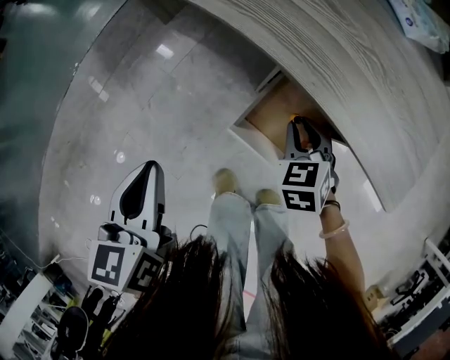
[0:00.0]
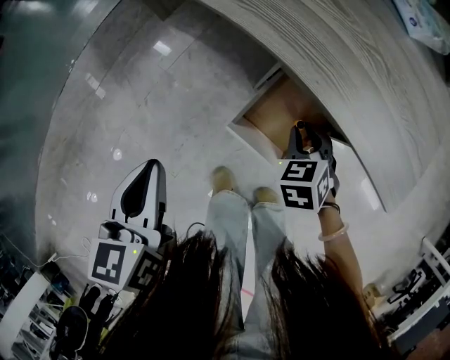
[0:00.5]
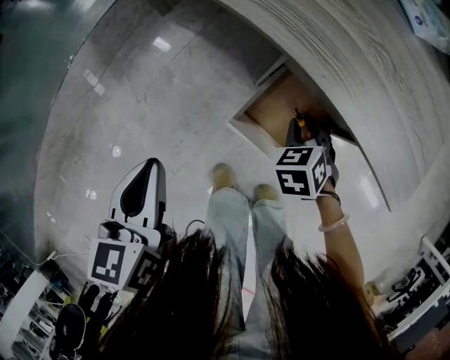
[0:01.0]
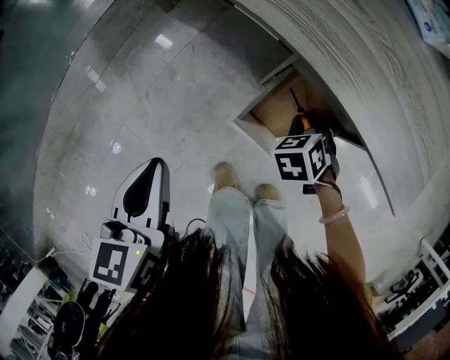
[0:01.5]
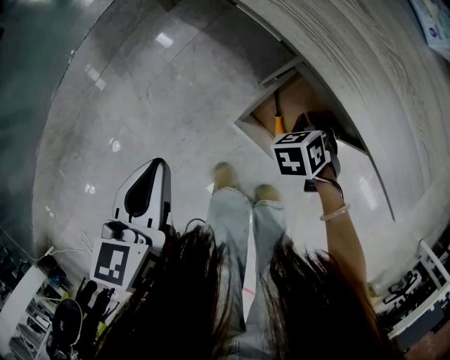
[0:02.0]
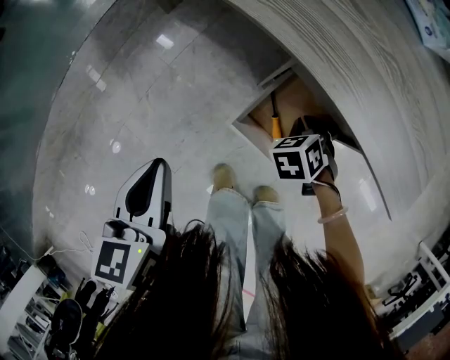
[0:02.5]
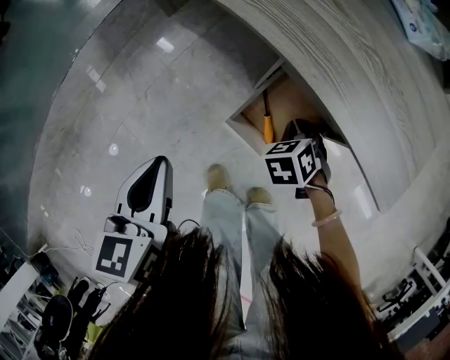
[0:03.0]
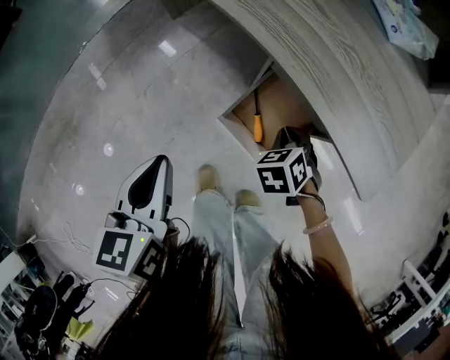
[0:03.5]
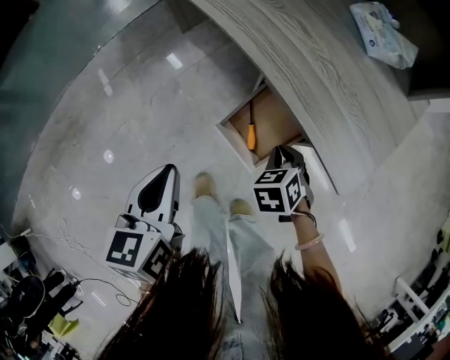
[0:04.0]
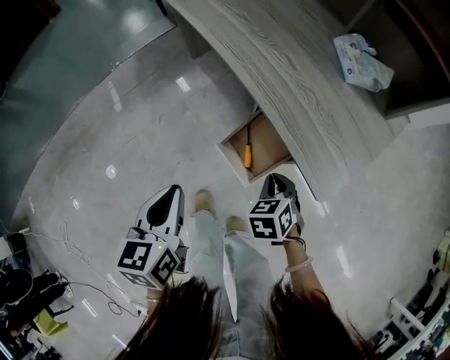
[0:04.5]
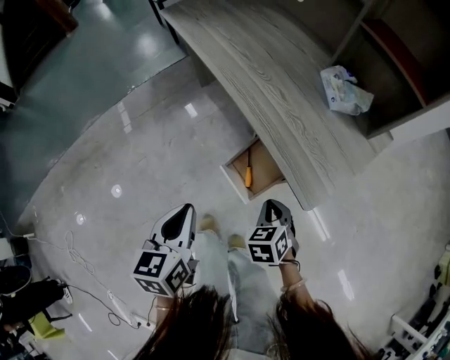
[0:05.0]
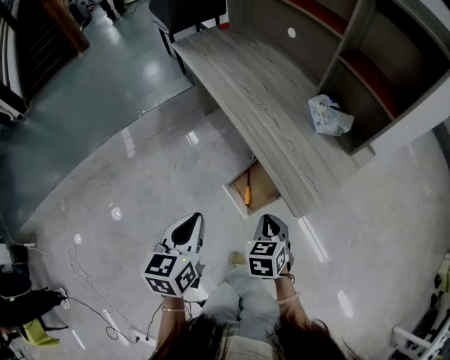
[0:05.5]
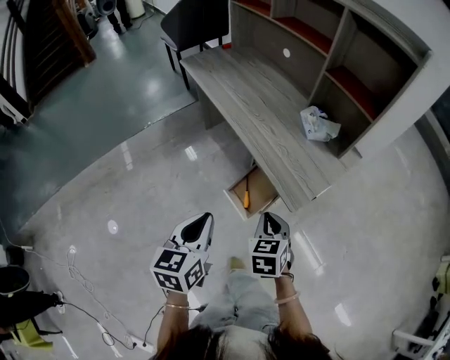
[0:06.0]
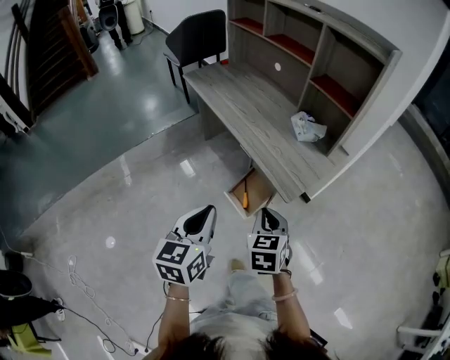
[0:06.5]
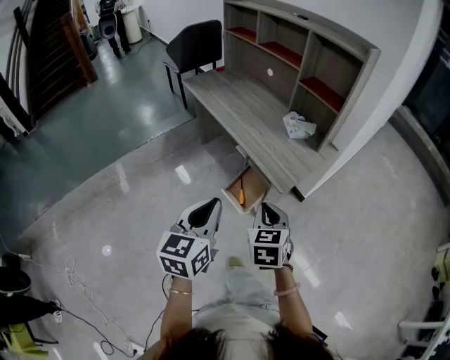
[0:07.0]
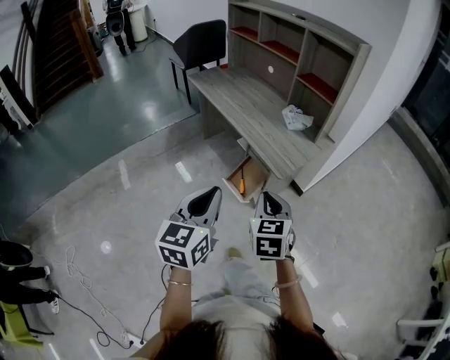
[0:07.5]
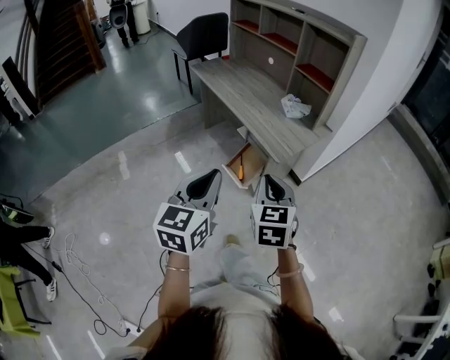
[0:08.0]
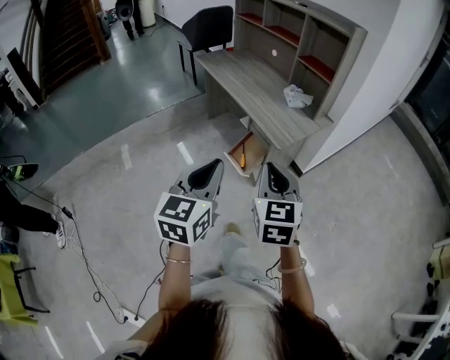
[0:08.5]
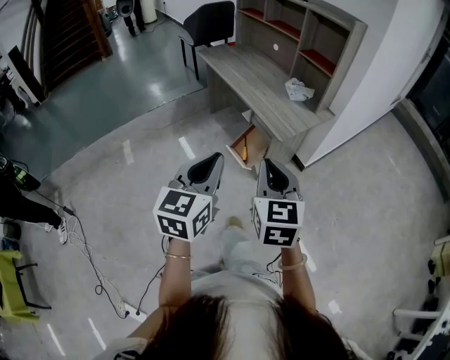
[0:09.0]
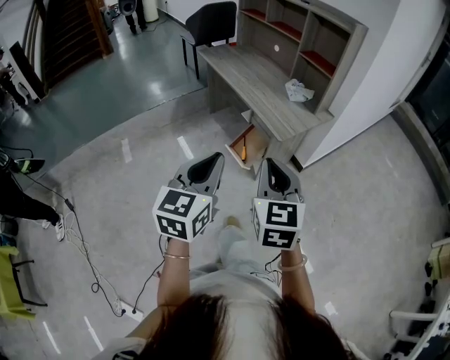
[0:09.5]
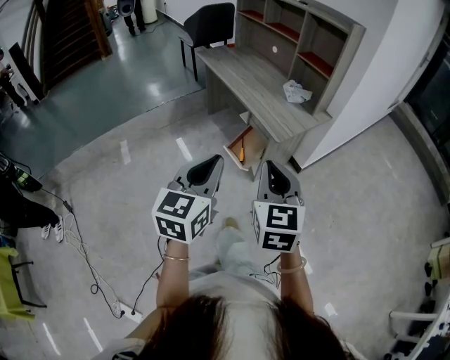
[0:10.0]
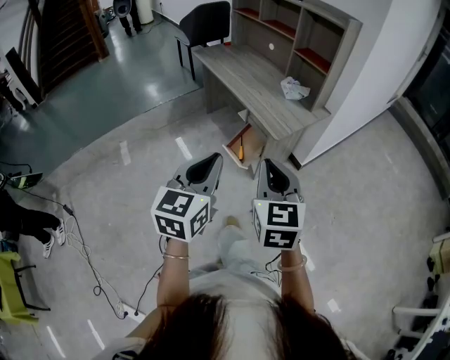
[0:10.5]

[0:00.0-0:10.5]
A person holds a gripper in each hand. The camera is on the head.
0:00.0 to 0:02.0: The right gripper is displaced downward by approximately 10 cm, and swivels roughly 20 degrees.
0:02.0 to 0:04.0: The left gripper travels to the right, upward and backward by about 10 cm. Meanwhile the right gripper heads upward and backward, covering some 10 cm.
0:04.0 to 0:06.5: Both grippers travel together upward and backward, about 35 cm. The right gripper changes its angle by about 30 degrees.
0:06.5 to 0:08.5: Both grippers travel together backward and upward, about 25 cm. The right gripper rotates roughly 20 degrees.
0:08.5 to 0:10.5: The grippers stay close to where they were, moving slightly.

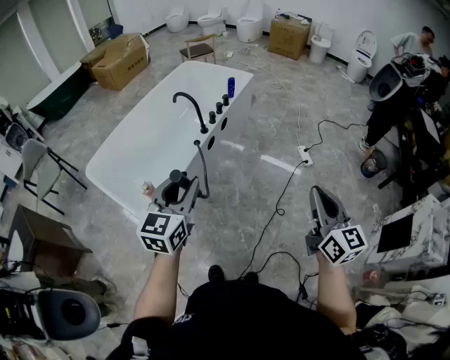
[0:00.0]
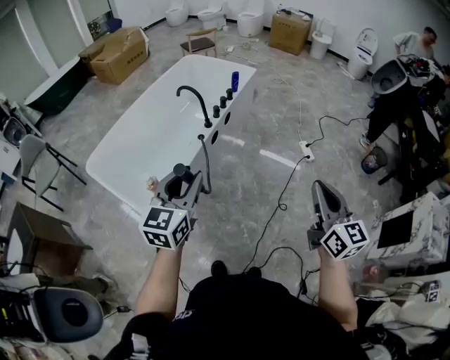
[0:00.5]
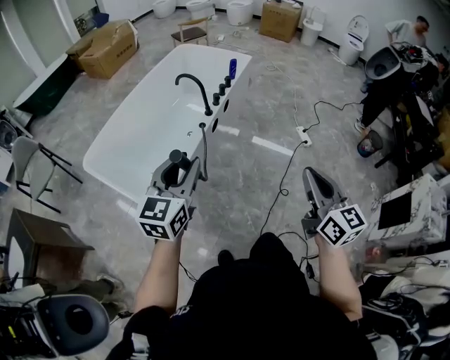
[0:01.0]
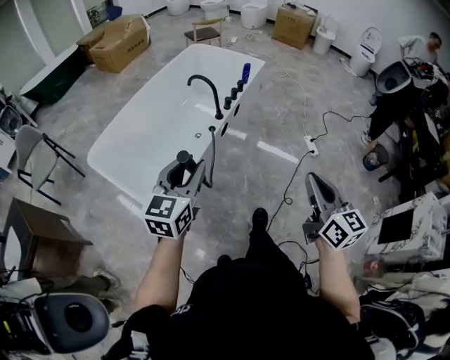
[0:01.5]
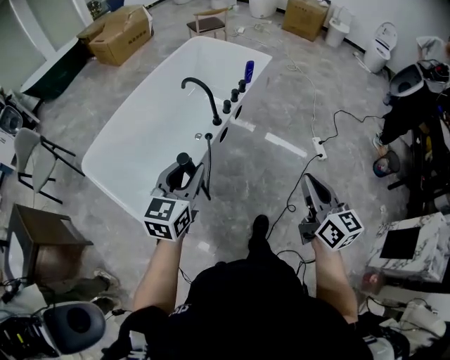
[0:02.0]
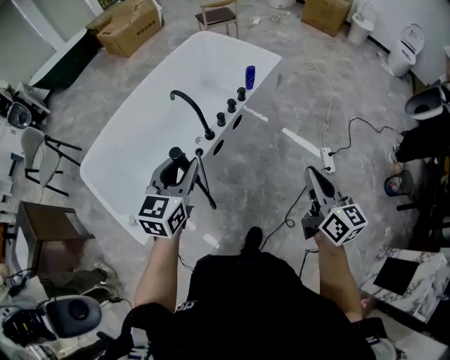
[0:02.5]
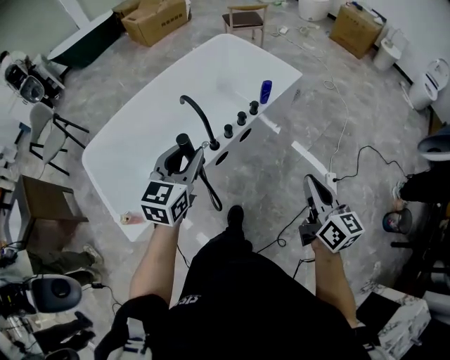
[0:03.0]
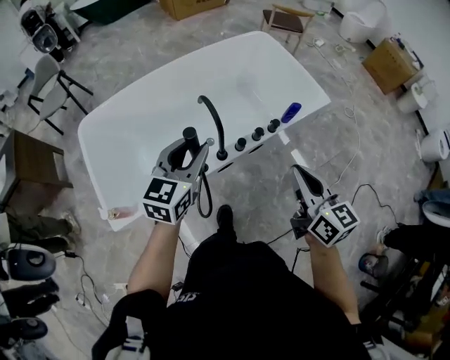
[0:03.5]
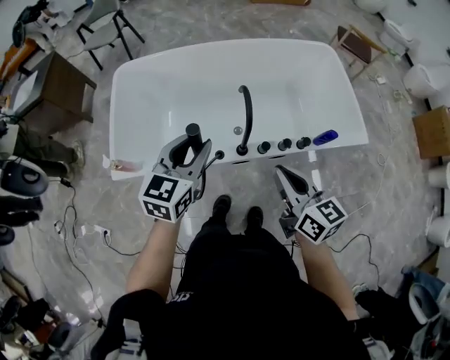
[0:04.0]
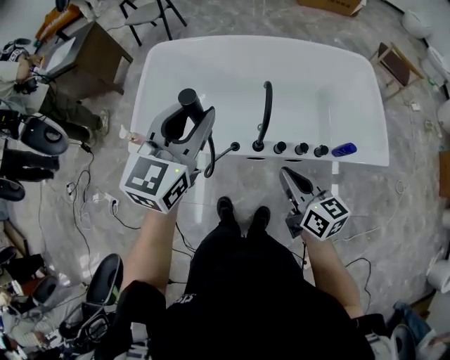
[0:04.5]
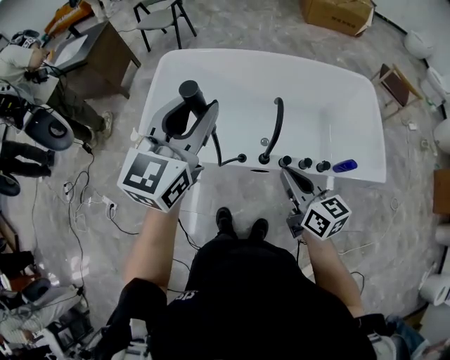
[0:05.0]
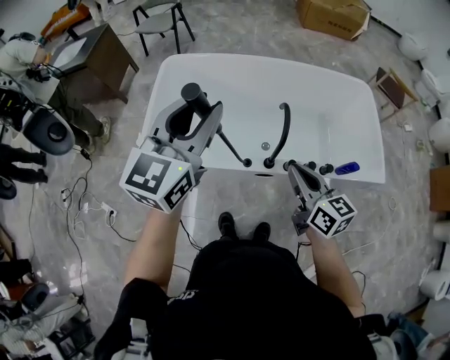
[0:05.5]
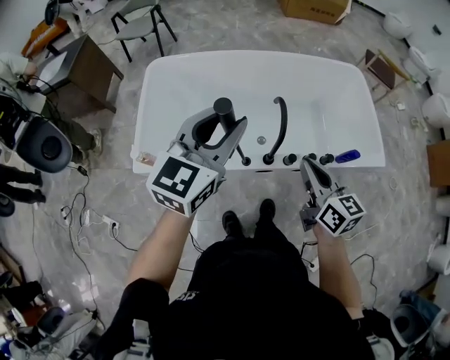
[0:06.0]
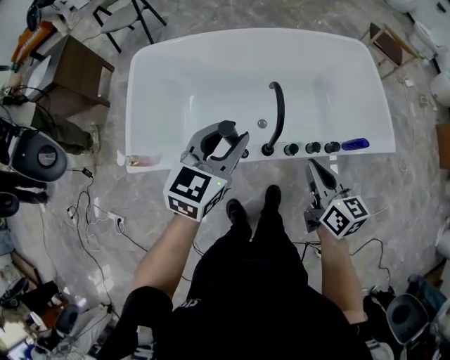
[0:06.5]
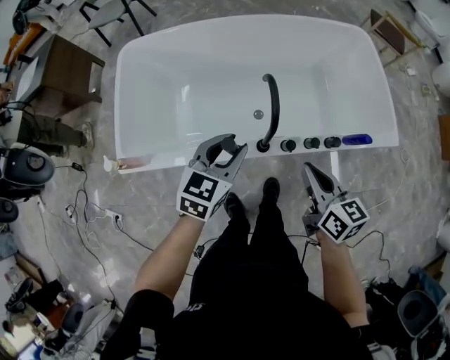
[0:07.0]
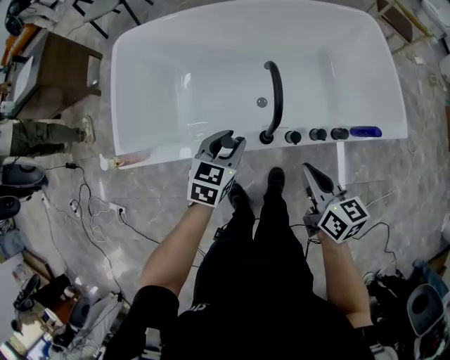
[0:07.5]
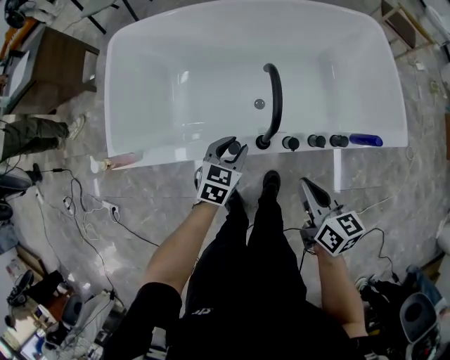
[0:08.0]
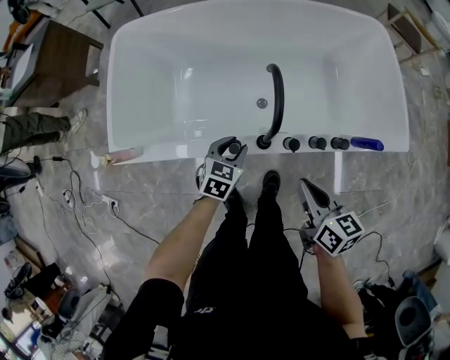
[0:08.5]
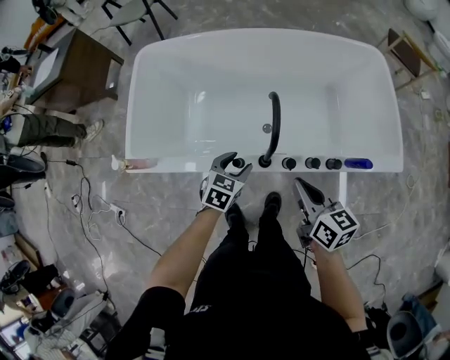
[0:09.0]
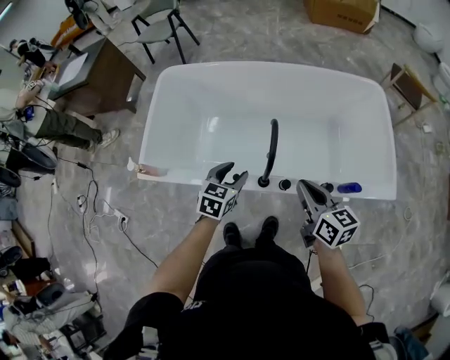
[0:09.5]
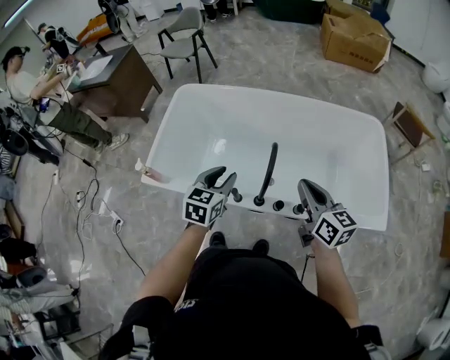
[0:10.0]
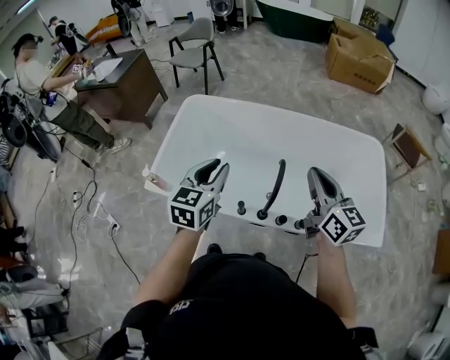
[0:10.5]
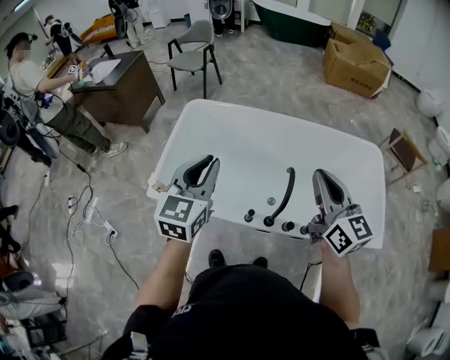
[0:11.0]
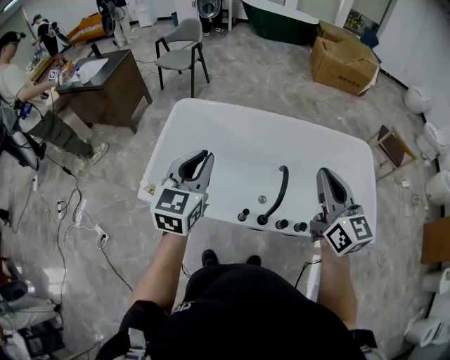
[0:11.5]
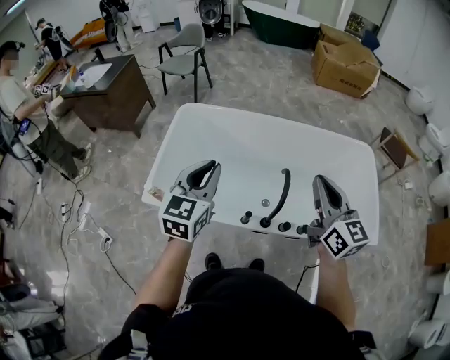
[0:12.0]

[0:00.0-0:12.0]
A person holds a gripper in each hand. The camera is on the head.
0:00.0 to 0:02.0: The grippers both shift forward and to the left by approximately 20 cm.
0:02.0 to 0:04.0: The left gripper ends up about 35 cm from where it was, and rotates roughly 50 degrees. The right gripper ends up about 50 cm from where it was, and swivels approximately 60 degrees.
0:04.0 to 0:06.0: The left gripper shifts roughly 15 cm upward and to the left; the right gripper changes place by approximately 5 cm.
0:06.0 to 0:08.0: The right gripper heads downward and to the right, covering roughly 20 cm. The left gripper travels downward by some 40 cm, and angles its fingers downward, by approximately 40 degrees.
0:08.0 to 0:10.0: The left gripper is displaced upward by roughly 25 cm, and rotates some 20 degrees; the right gripper goes roughly 20 cm upward and forward, and changes its angle by about 20 degrees.
0:10.0 to 0:12.0: Both grippers move upward and to the left, some 20 cm. The left gripper closes; the right gripper changes its angle by about 20 degrees.

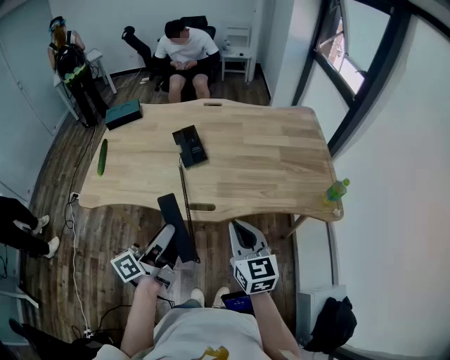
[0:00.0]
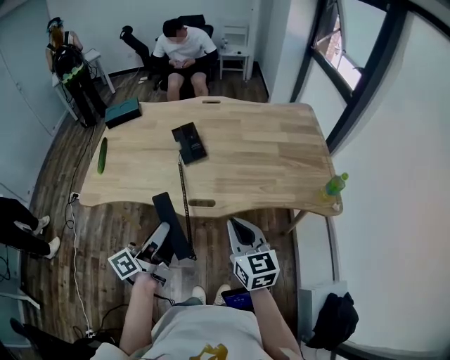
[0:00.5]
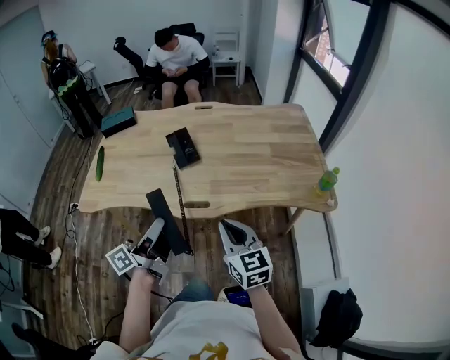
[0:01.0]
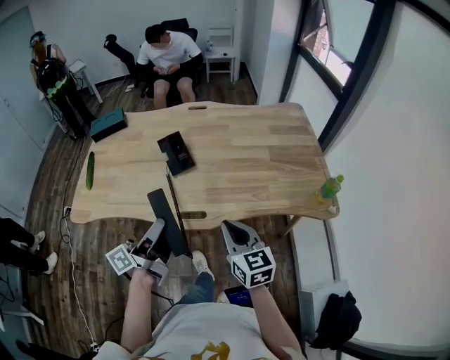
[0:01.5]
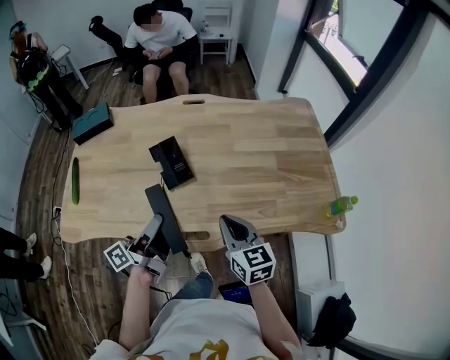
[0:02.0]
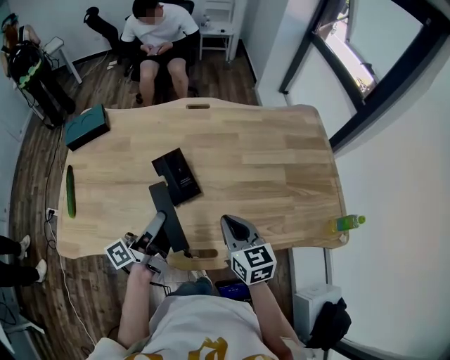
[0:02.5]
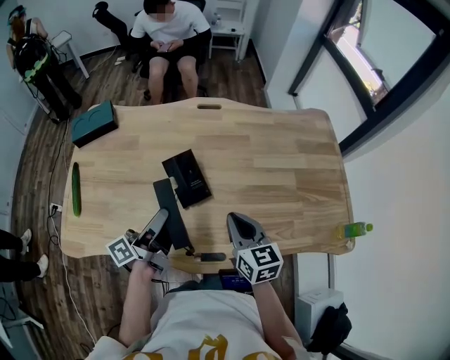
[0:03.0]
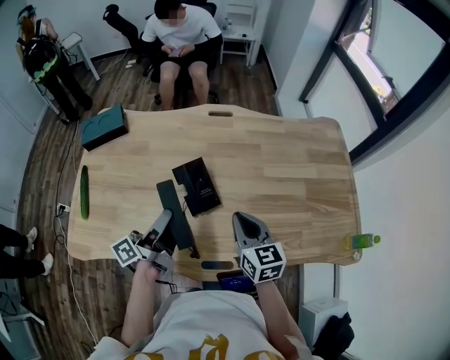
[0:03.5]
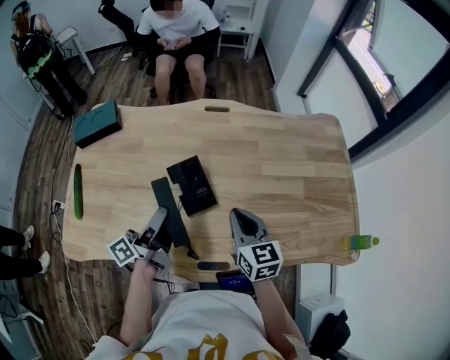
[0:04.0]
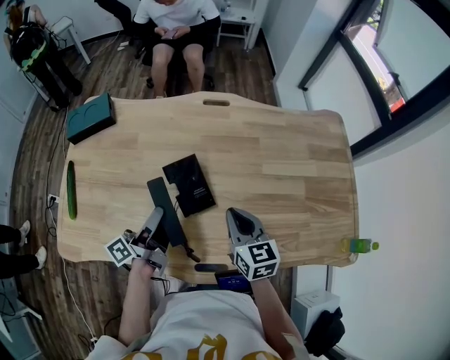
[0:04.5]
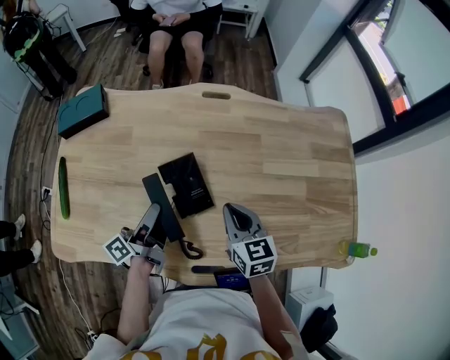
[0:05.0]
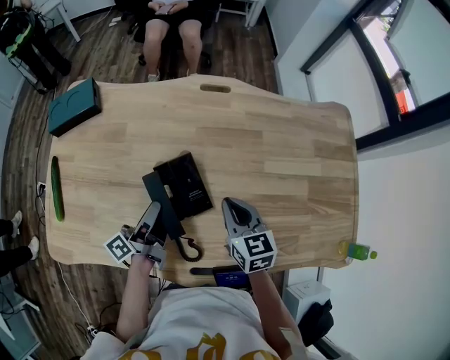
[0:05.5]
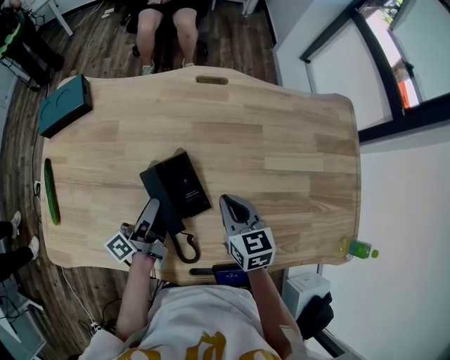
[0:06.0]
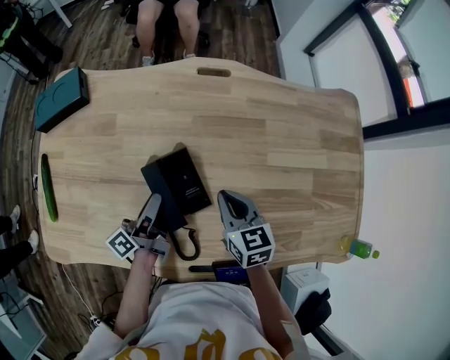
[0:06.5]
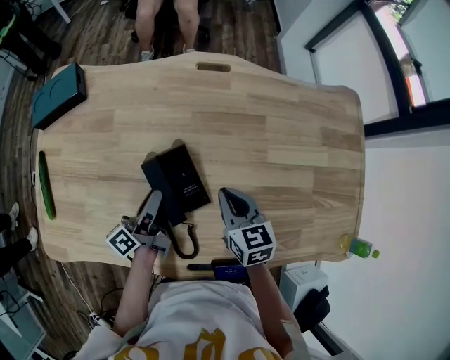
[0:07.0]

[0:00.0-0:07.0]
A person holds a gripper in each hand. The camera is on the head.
0:00.0 to 0:02.0: The two grippers go roughly 20 cm forward.
0:02.0 to 0:03.5: Both grippers move forward and to the left, some 15 cm.
0:03.5 to 0:05.0: The right gripper is displaced forward and downward by approximately 10 cm; the left gripper travels downward and forward by roughly 10 cm.
0:05.0 to 0:07.0: Both grippers travel together downward, some 5 cm.
